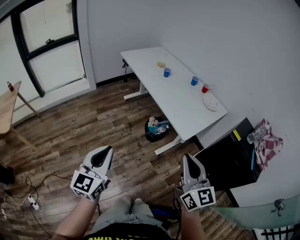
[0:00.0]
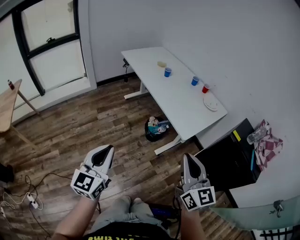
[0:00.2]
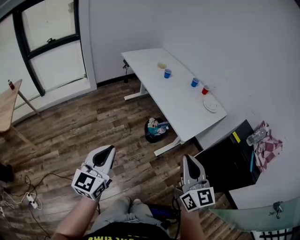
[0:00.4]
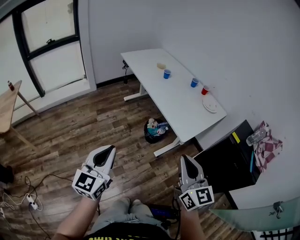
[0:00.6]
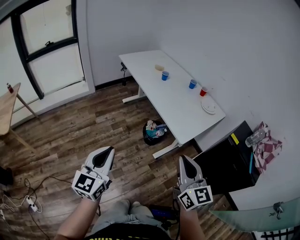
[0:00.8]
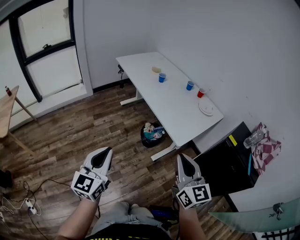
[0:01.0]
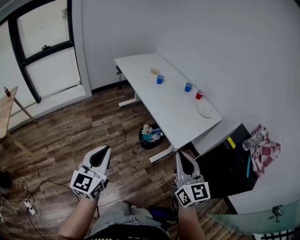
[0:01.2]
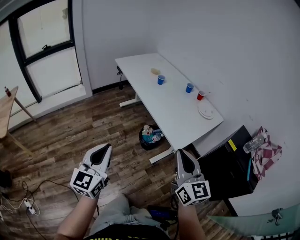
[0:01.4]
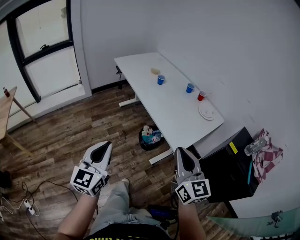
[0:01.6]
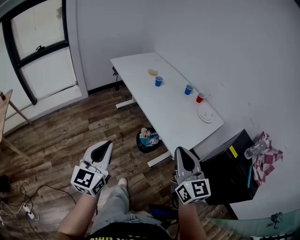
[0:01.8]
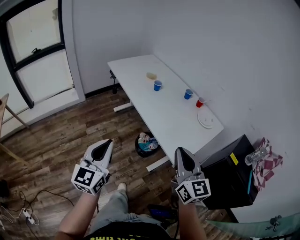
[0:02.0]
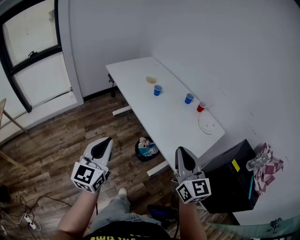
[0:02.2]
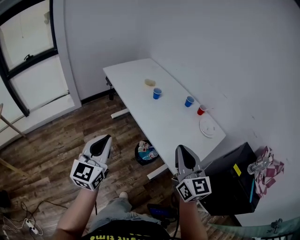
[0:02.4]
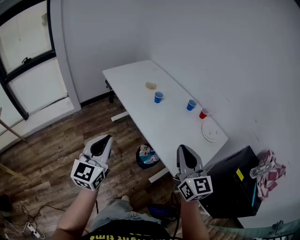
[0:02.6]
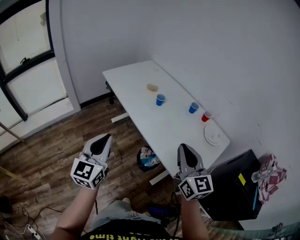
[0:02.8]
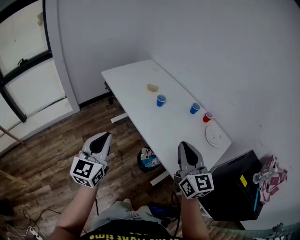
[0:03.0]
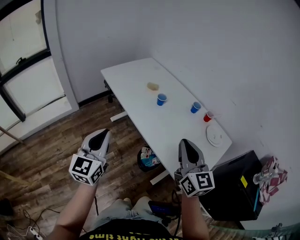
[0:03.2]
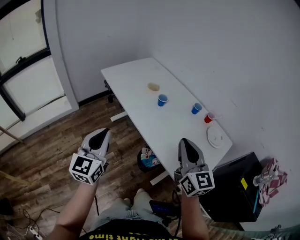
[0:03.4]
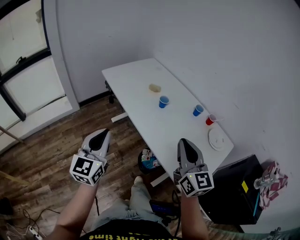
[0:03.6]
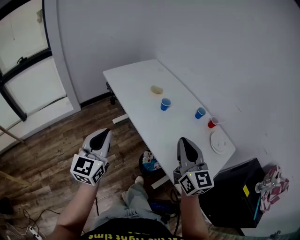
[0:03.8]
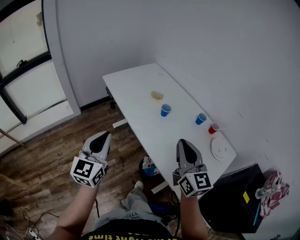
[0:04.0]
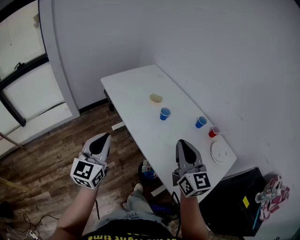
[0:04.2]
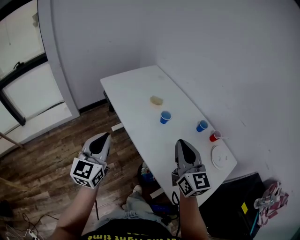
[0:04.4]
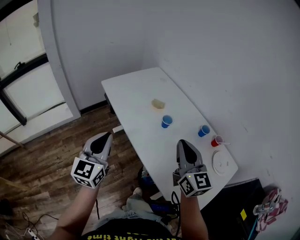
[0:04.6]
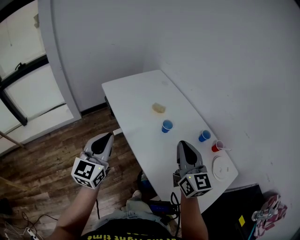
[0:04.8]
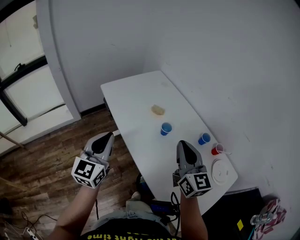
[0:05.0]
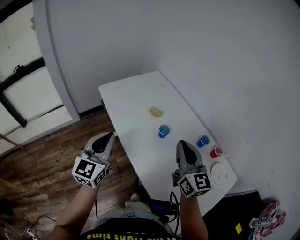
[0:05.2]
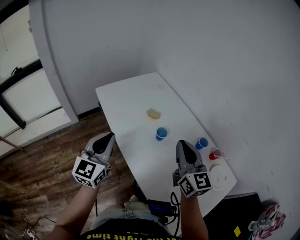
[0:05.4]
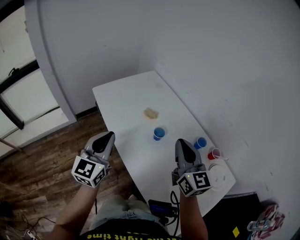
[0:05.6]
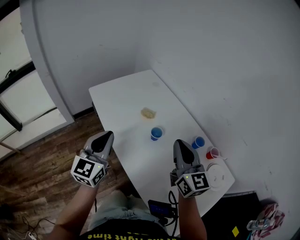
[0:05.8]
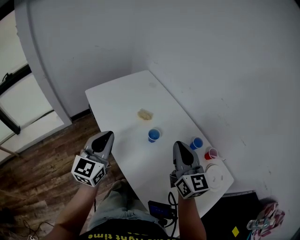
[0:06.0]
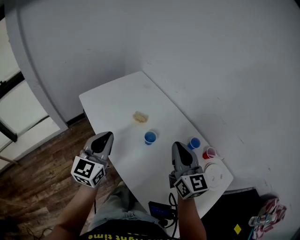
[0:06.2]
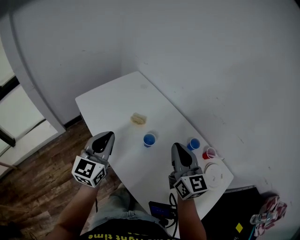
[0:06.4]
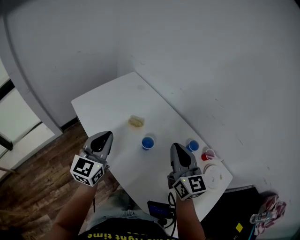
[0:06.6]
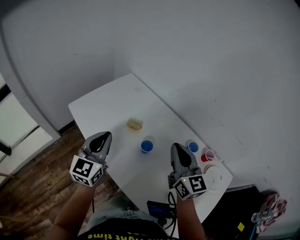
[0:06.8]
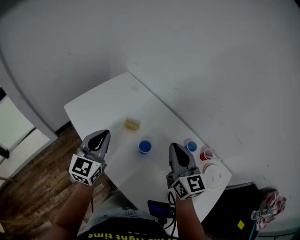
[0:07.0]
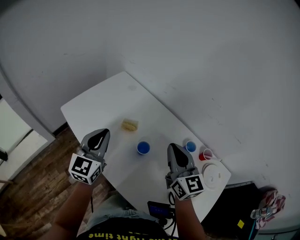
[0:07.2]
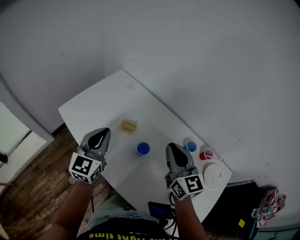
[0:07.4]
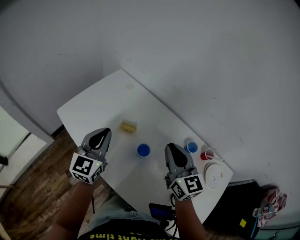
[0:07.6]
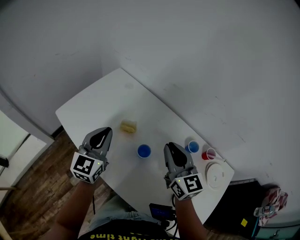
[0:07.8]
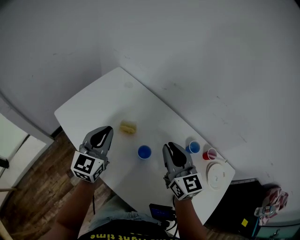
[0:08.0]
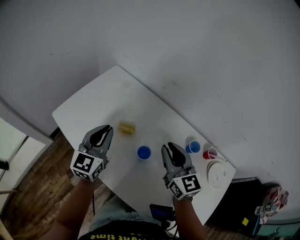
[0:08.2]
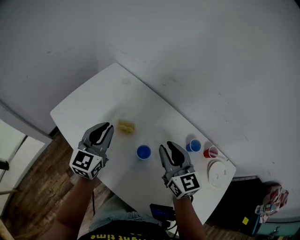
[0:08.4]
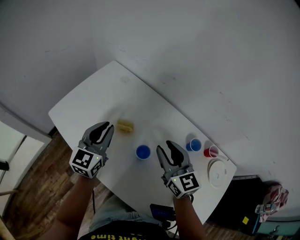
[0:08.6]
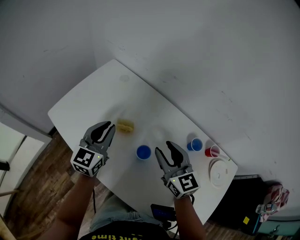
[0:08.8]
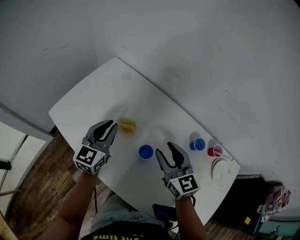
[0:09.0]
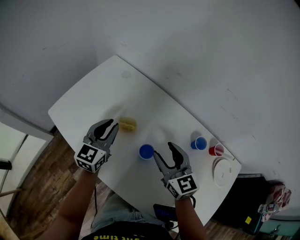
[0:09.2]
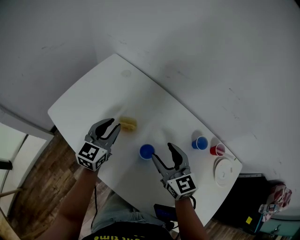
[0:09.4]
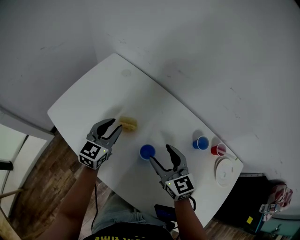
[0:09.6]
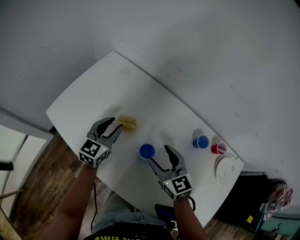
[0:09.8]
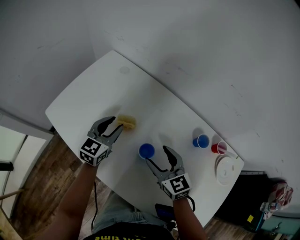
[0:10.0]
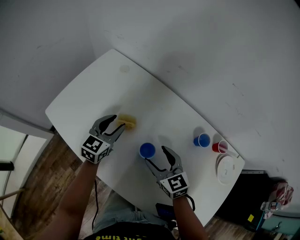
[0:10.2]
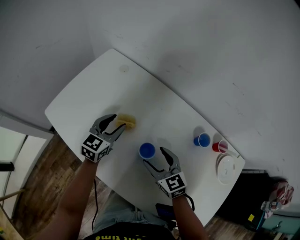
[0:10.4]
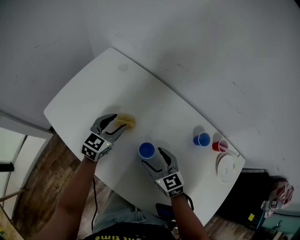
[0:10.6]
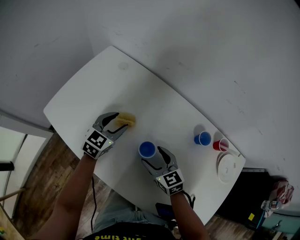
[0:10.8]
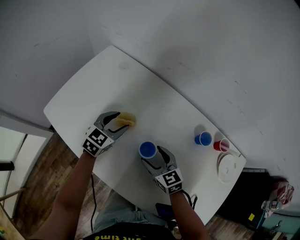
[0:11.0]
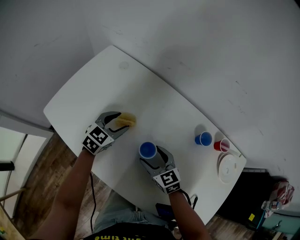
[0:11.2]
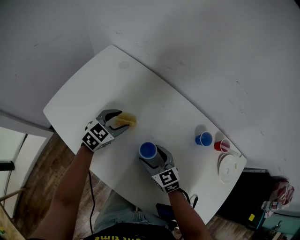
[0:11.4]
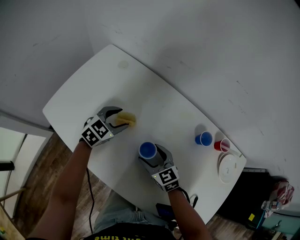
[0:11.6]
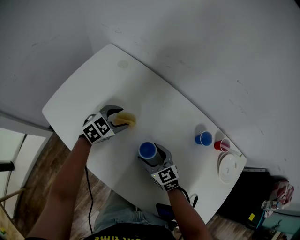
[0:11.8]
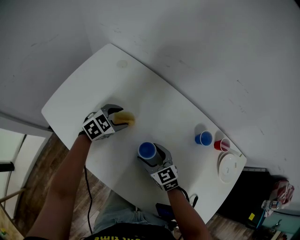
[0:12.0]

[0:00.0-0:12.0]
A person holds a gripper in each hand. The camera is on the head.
0:00.0 to 0:01.6: The two grippers go some 10 cm forward.
0:01.6 to 0:03.0: Both grippers travel together forward, approximately 30 cm.
0:03.0 to 0:04.4: Both grippers move forward, some 15 cm.
0:04.4 to 0:06.0: Both grippers move forward and to the right, approximately 20 cm.
0:06.0 to 0:07.6: The left gripper travels forward by some 15 cm. Meanwhile the right gripper moves forward, some 10 cm.
0:07.6 to 0:09.0: The left gripper is displaced forward and downward by approximately 10 cm. Meanwhile the right gripper heads downward, covering roughly 10 cm, and opens.
0:09.0 to 0:10.4: Both grippers travel together downward, some 10 cm. The right gripper opens its fingers. The left gripper opens up.
0:10.4 to 0:12.0: Both grippers move downward, roughly 5 cm. The left gripper turns by some 40 degrees.

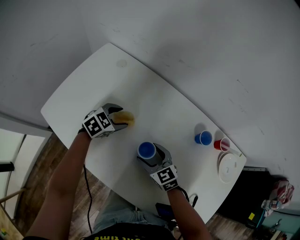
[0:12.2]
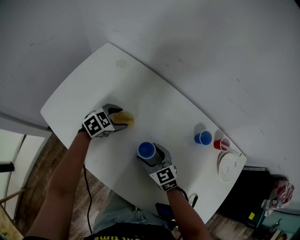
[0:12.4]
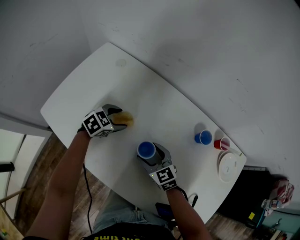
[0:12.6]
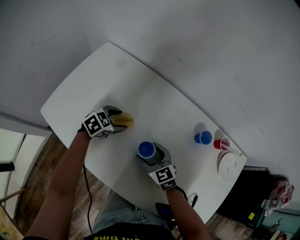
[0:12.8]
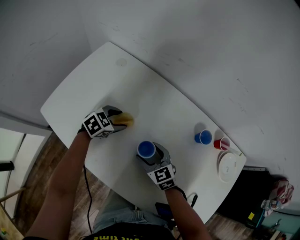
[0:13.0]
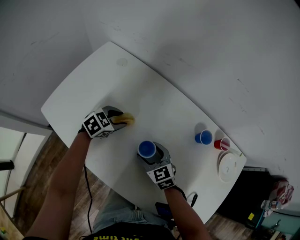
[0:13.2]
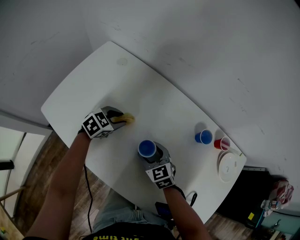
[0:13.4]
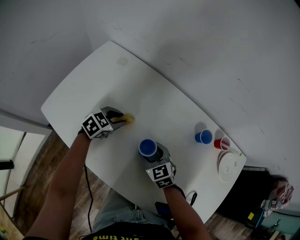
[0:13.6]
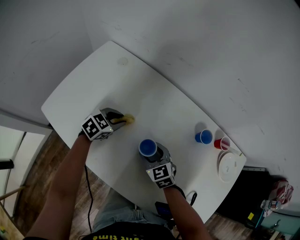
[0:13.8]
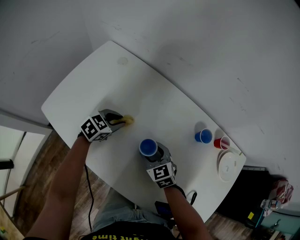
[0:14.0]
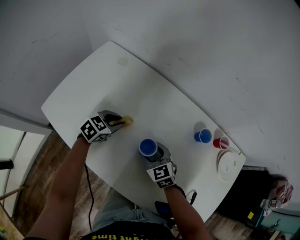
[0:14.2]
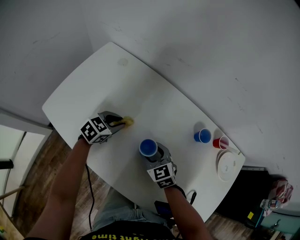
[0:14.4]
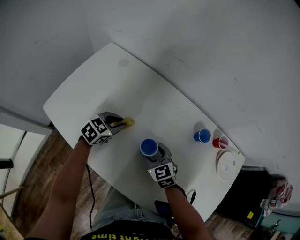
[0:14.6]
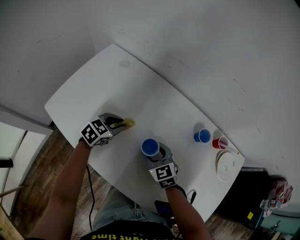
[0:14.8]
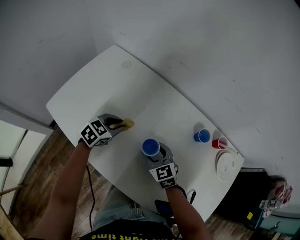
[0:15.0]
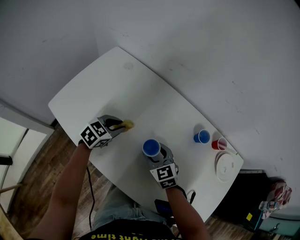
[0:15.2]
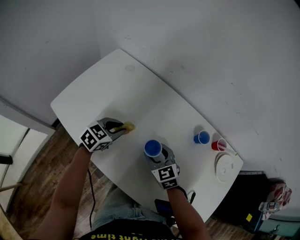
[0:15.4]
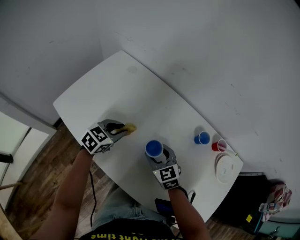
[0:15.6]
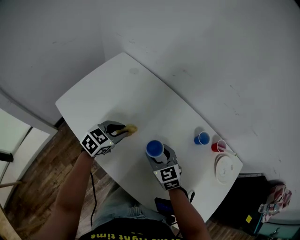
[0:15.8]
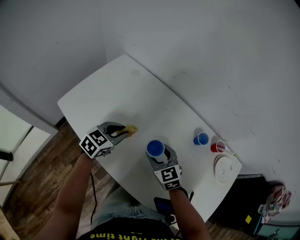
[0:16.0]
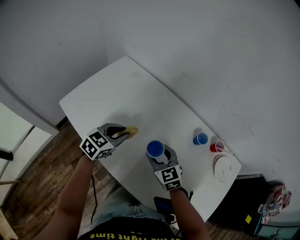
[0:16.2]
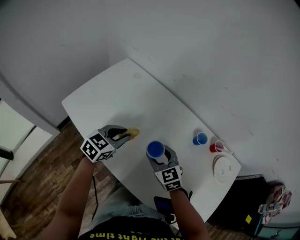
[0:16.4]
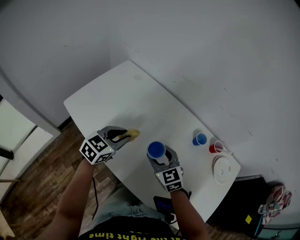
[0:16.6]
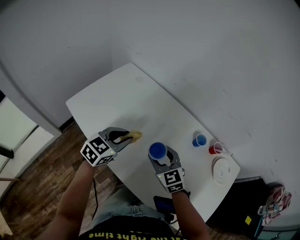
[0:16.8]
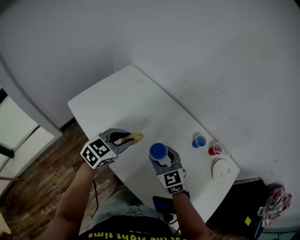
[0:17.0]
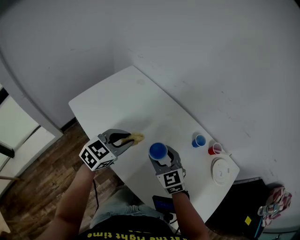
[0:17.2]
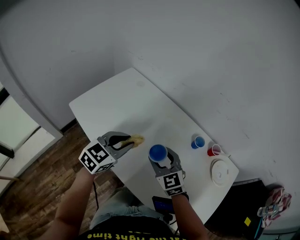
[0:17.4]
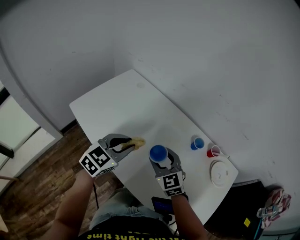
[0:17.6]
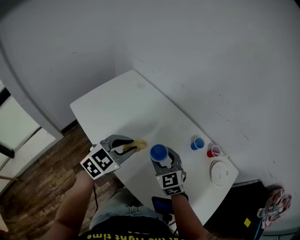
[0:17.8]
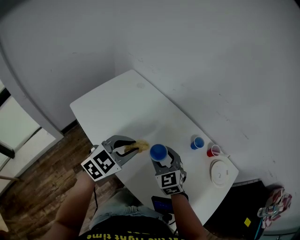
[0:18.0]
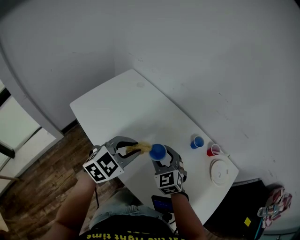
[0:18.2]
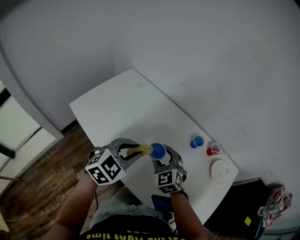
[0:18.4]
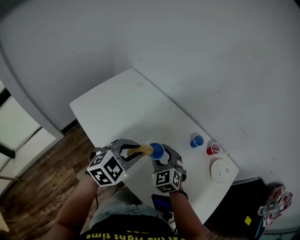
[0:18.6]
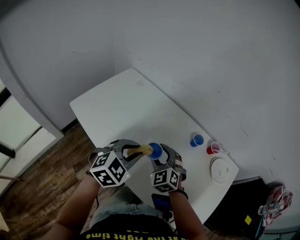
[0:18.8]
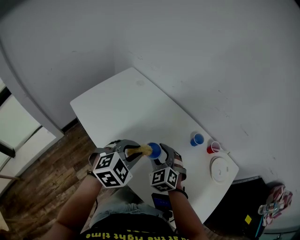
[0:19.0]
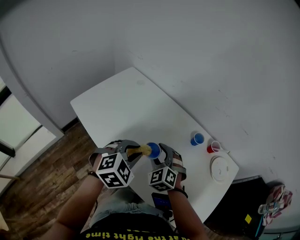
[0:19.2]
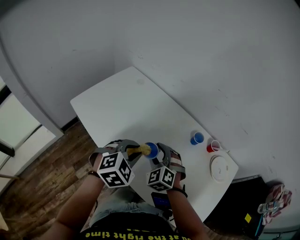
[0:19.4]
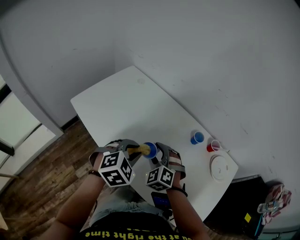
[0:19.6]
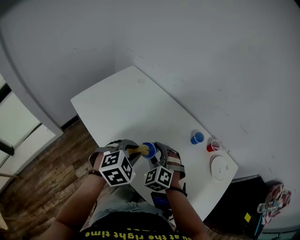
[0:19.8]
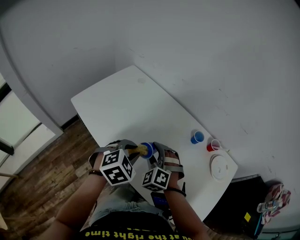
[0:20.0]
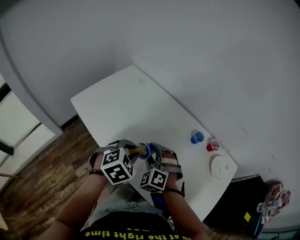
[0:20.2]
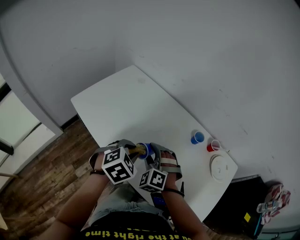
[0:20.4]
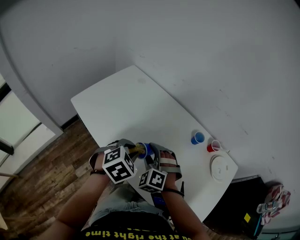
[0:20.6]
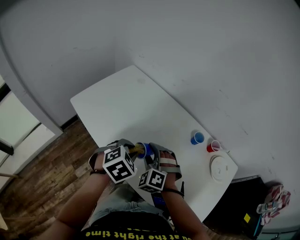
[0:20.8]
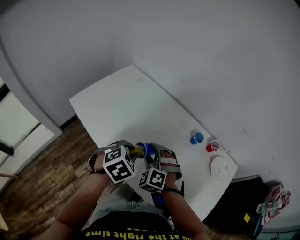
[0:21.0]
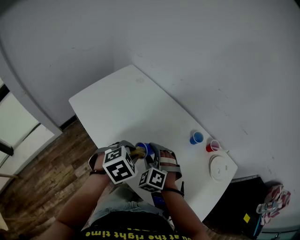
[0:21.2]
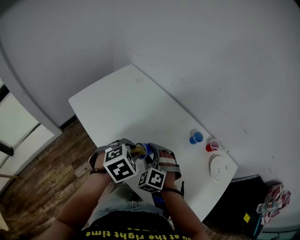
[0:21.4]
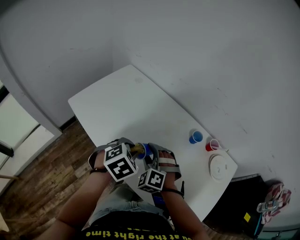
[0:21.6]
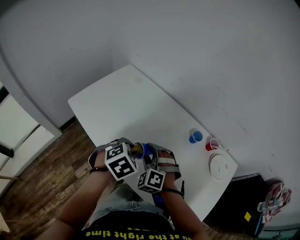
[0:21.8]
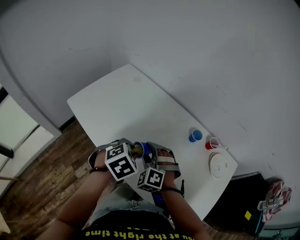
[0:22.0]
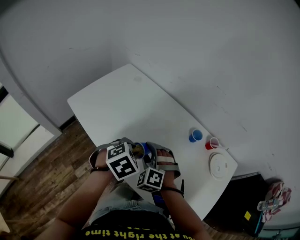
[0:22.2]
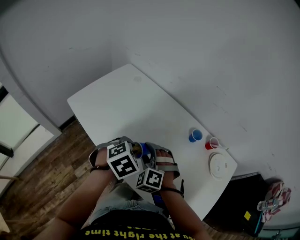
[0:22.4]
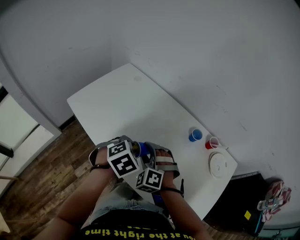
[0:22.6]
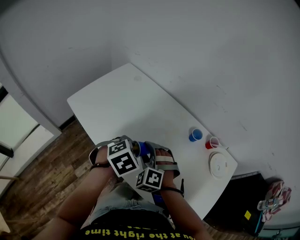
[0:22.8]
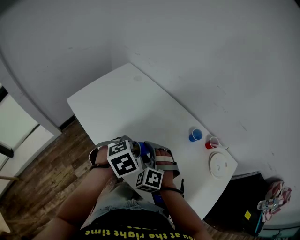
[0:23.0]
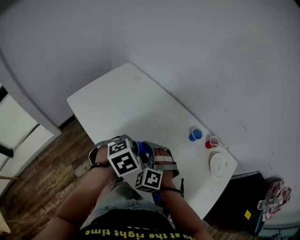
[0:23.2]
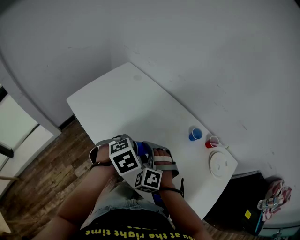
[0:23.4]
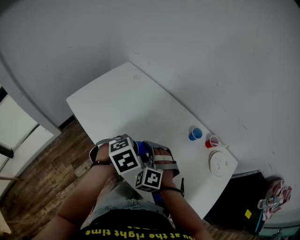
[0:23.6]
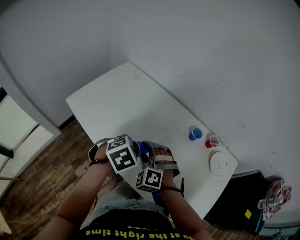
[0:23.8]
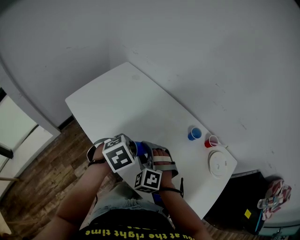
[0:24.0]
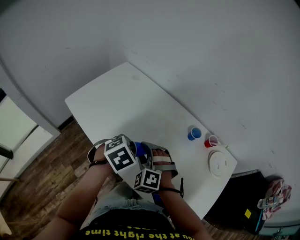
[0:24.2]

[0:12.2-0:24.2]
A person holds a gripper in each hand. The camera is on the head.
0:12.2 to 0:13.8: The left gripper closes.
0:13.8 to 0:15.2: The left gripper ends up some 5 cm from where it was.
0:15.2 to 0:16.6: The right gripper heads upward, covering roughly 10 cm. The left gripper travels upward and backward by roughly 15 cm.
0:16.6 to 0:18.2: The left gripper is displaced upward, backward and to the right by approximately 15 cm.
0:18.2 to 0:19.8: The right gripper swivels about 30 degrees, while the left gripper moves downward, approximately 5 cm, and changes its angle by approximately 20 degrees.
0:19.8 to 0:24.2: The grippers make only small movements.
